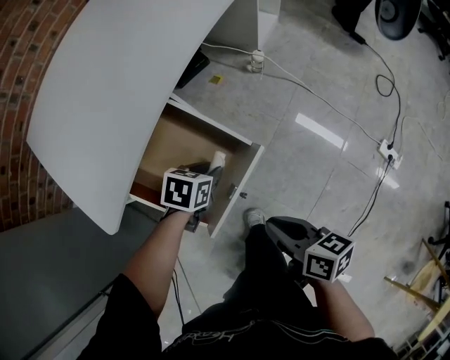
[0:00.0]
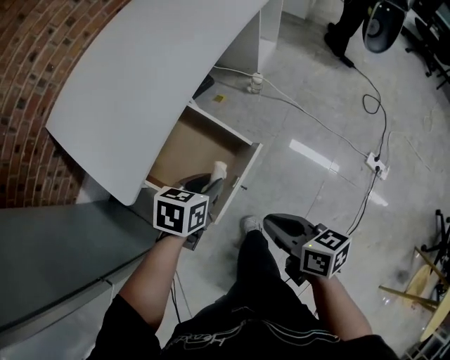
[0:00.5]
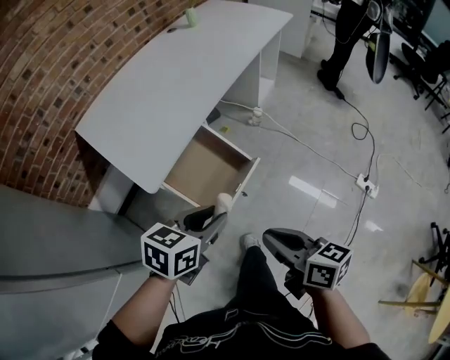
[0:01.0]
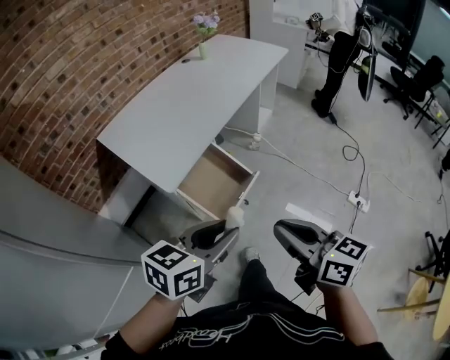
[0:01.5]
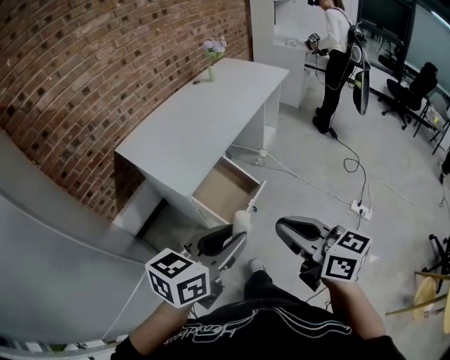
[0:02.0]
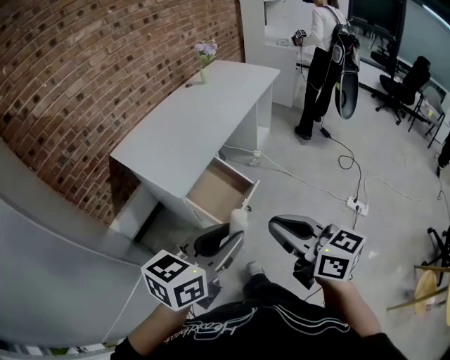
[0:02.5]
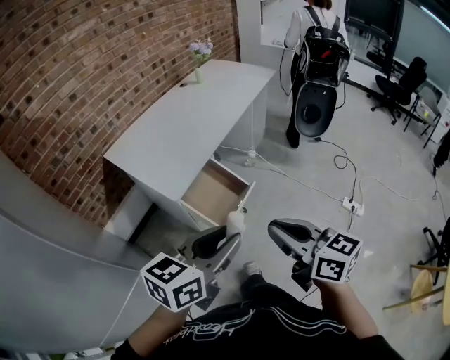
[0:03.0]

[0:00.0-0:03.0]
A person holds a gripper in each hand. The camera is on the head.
0:00.0 to 0:01.5: Both grippers move upward and backward, about 50 cm. The left gripper tips its fingers upward by roughly 40 degrees, while the right gripper swivels roughly 30 degrees.
0:01.5 to 0:03.0: The right gripper is displaced backward and upward by about 10 cm, while the left gripper goes roughly 10 cm upward and backward.

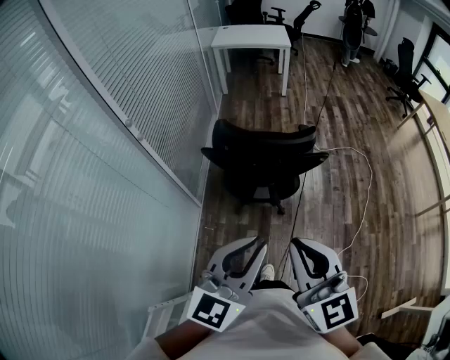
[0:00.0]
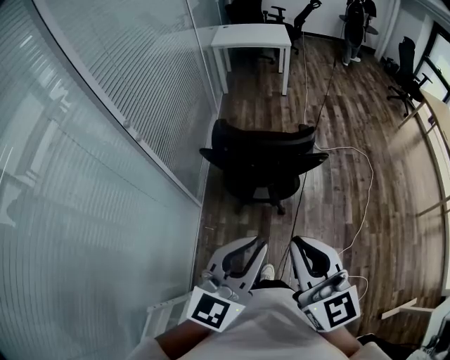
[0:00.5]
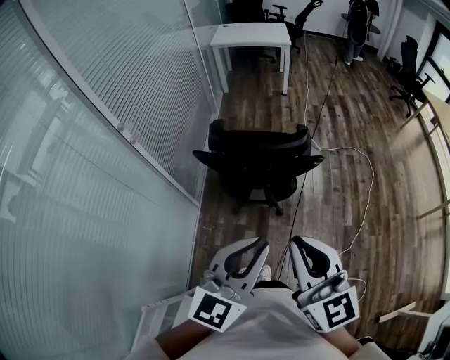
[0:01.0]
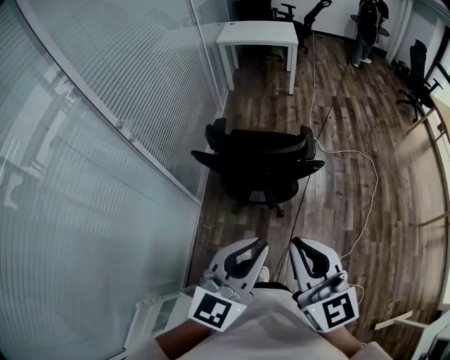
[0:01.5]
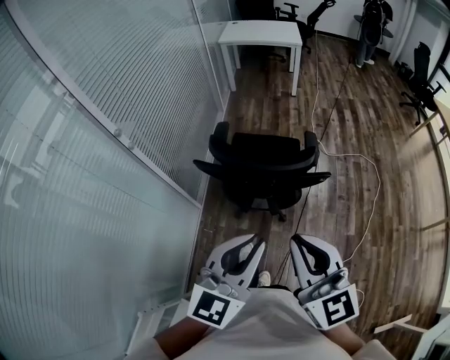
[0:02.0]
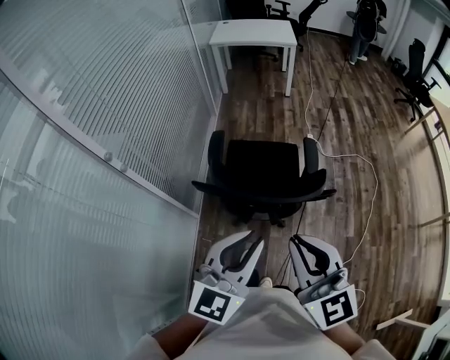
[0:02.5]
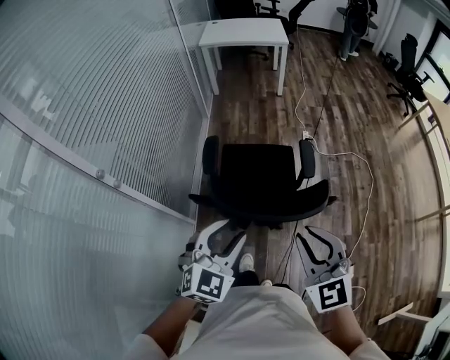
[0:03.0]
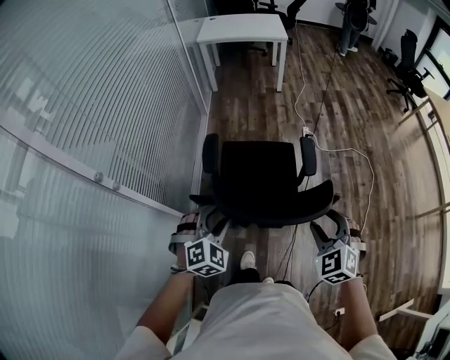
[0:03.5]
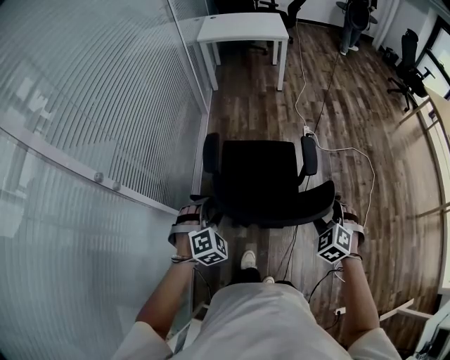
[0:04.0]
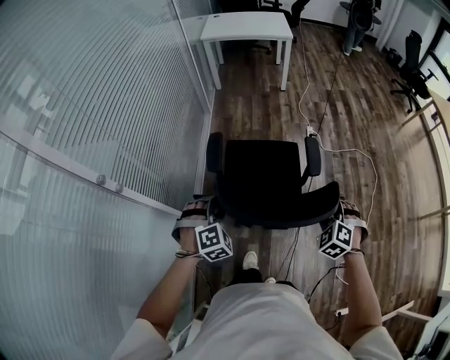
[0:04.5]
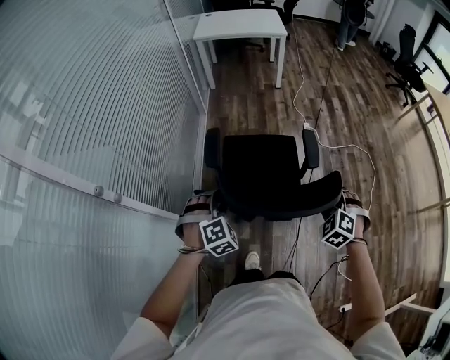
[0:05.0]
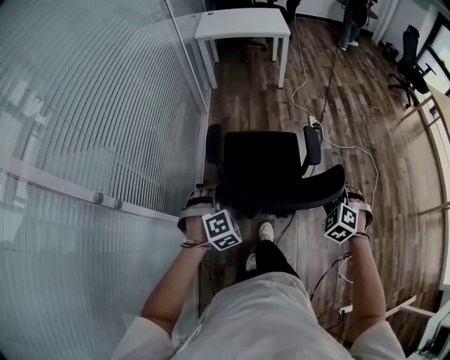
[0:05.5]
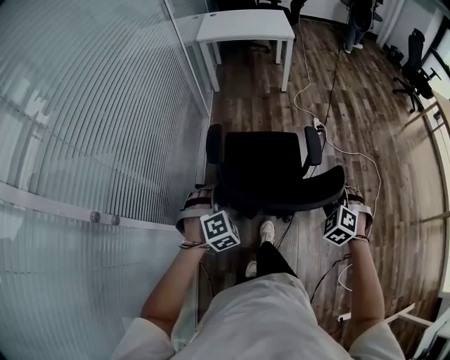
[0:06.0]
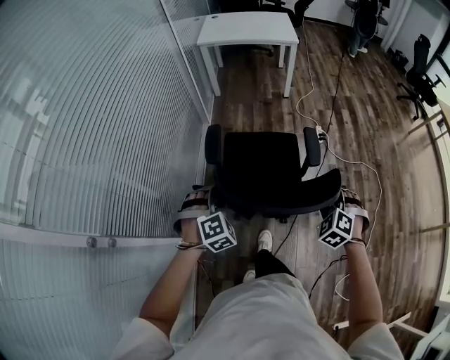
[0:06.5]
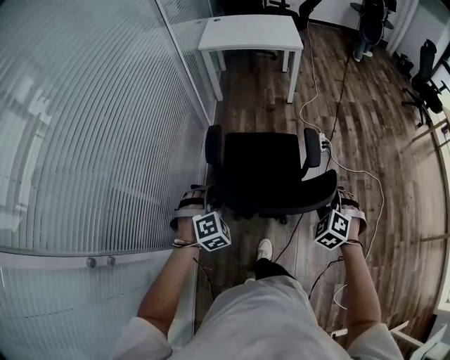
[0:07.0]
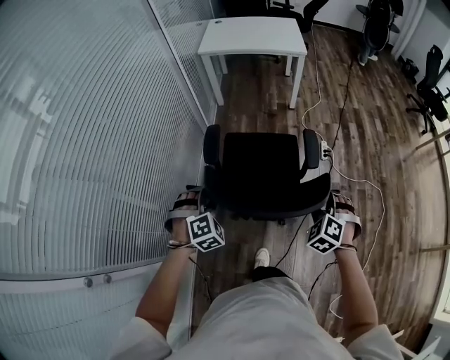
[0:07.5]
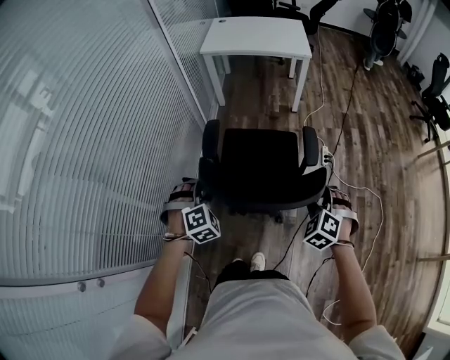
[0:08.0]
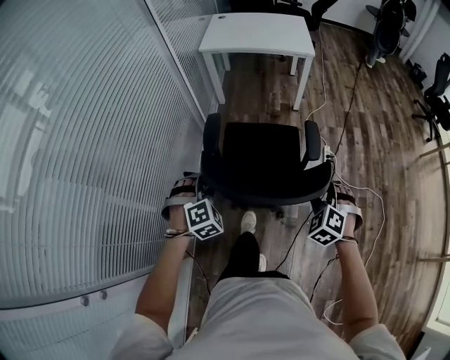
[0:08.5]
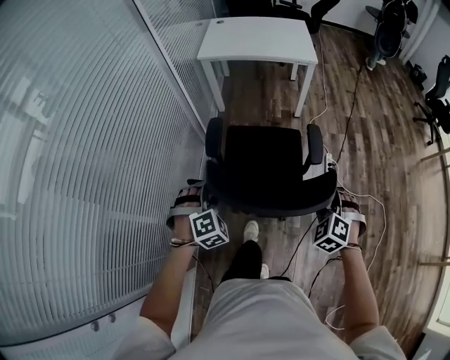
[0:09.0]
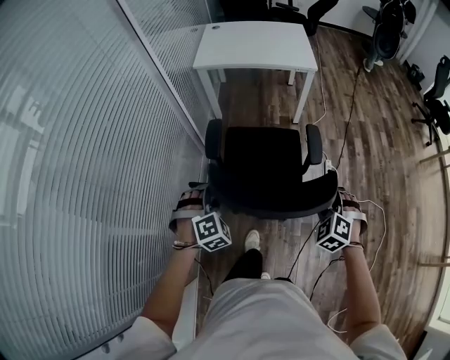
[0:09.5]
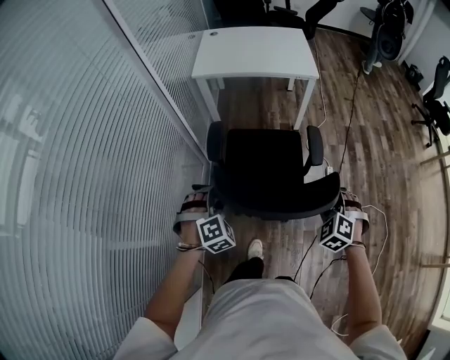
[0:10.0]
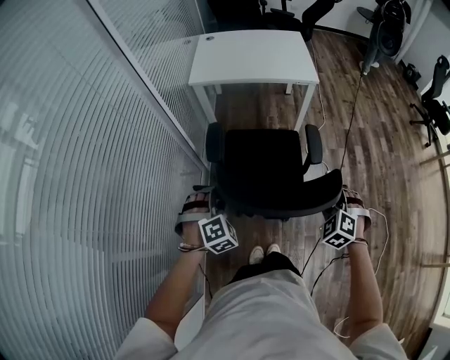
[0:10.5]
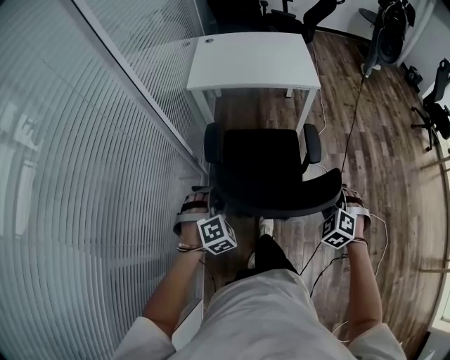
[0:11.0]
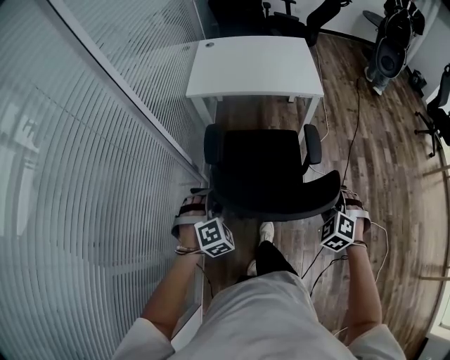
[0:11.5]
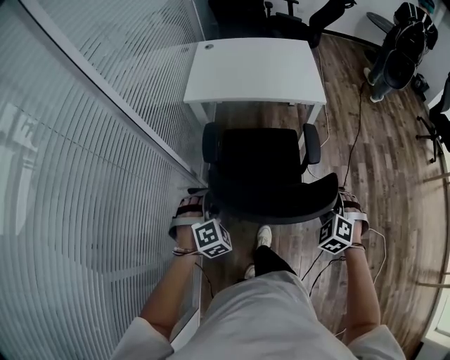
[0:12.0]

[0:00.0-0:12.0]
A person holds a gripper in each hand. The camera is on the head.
0:00.0 to 0:02.0: The grippers both shift forward by about 10 cm.
0:02.0 to 0:04.0: The right gripper shifts about 35 cm downward and forward, angles its fingers downward, by approximately 50 degrees, and opens. Meanwhile the left gripper is displaced forward, downward and to the left by roughly 40 cm, tilts its fingers approximately 40 degrees downward, and opens up.
0:04.0 to 0:06.0: Both grippers move forward, approximately 15 cm.
0:06.0 to 0:08.0: Both grippers travel together forward, about 30 cm.
0:08.0 to 0:10.0: The grippers both shift forward by about 25 cm.
0:10.0 to 0:12.0: The grippers both shift forward by about 20 cm.

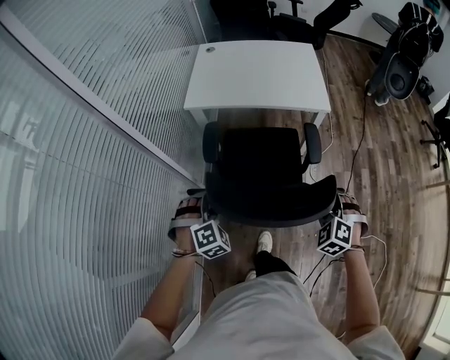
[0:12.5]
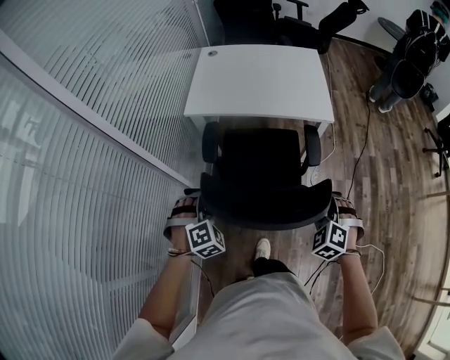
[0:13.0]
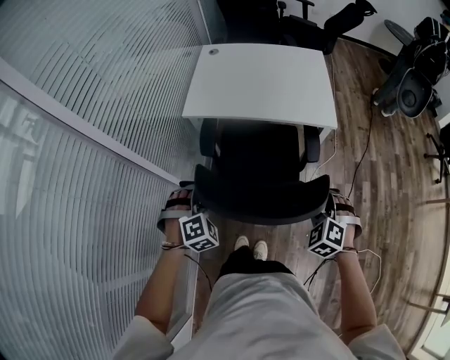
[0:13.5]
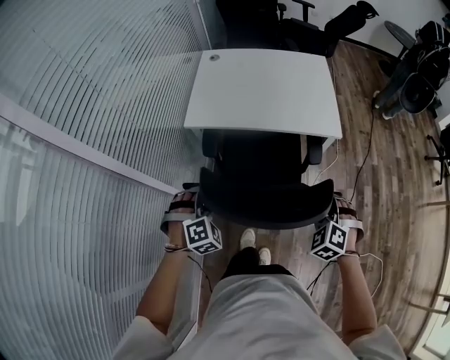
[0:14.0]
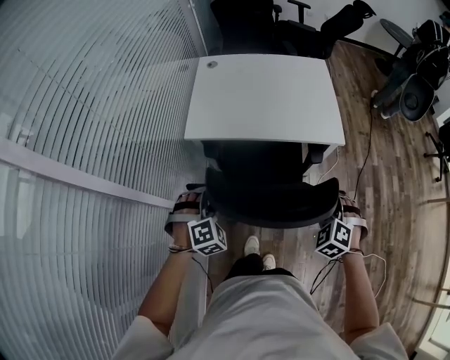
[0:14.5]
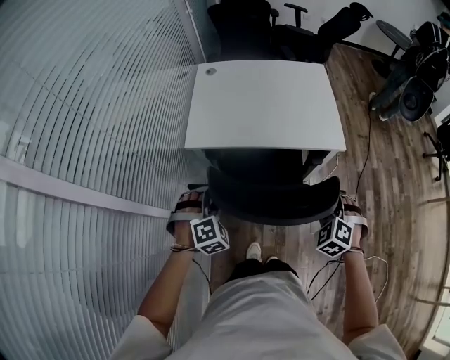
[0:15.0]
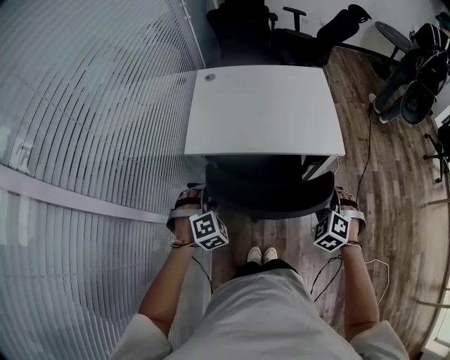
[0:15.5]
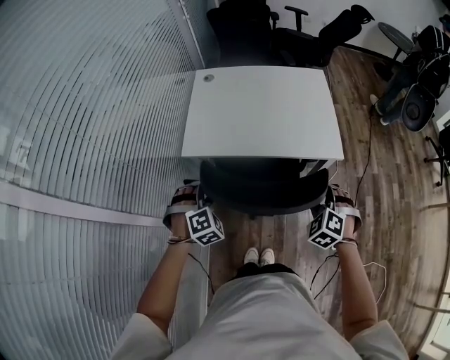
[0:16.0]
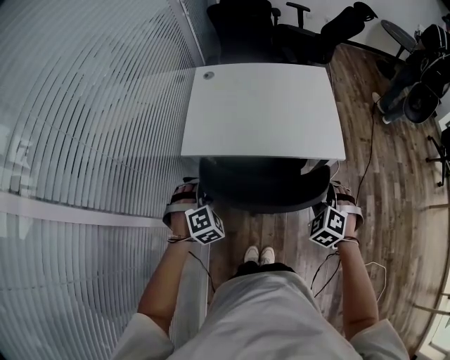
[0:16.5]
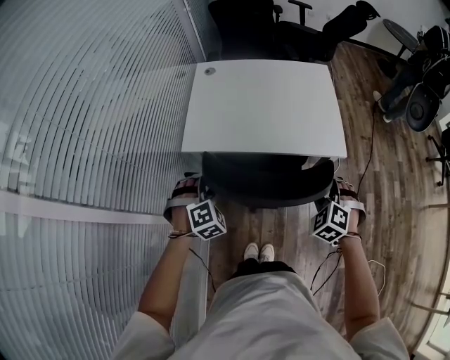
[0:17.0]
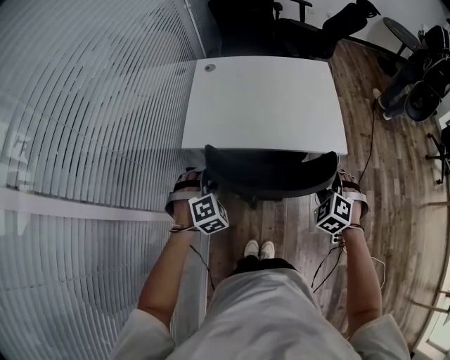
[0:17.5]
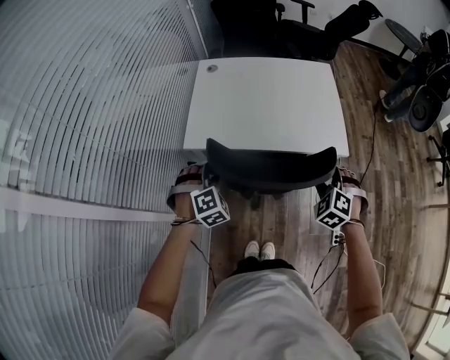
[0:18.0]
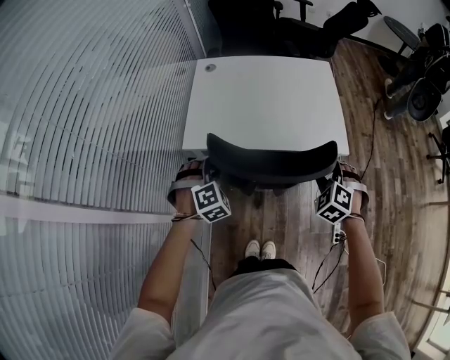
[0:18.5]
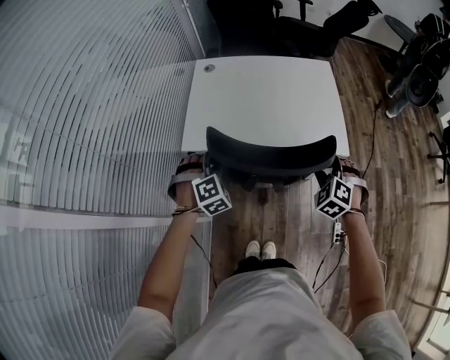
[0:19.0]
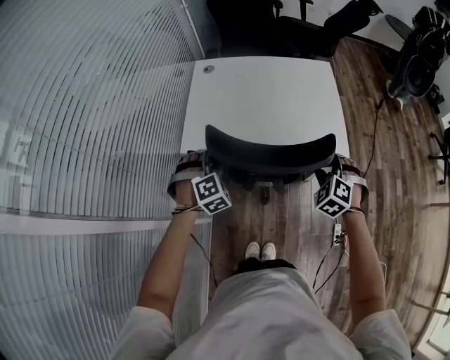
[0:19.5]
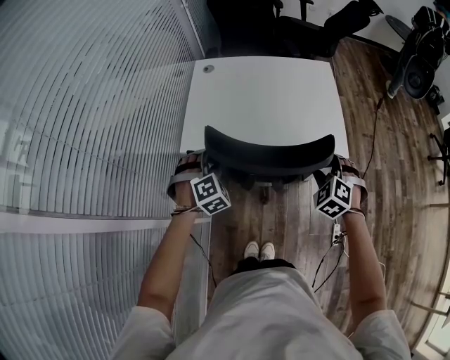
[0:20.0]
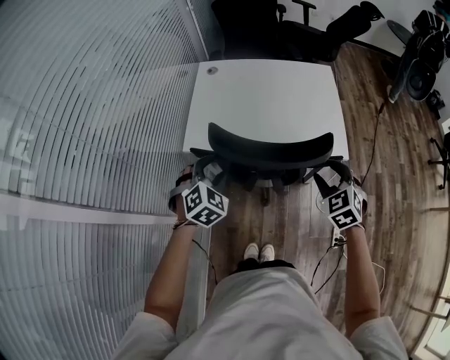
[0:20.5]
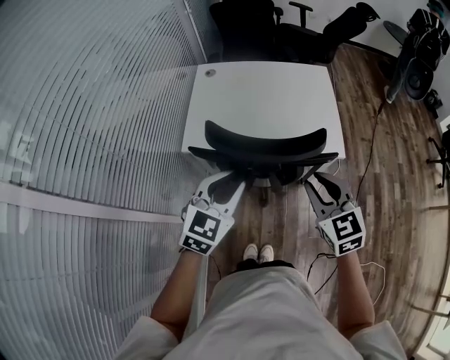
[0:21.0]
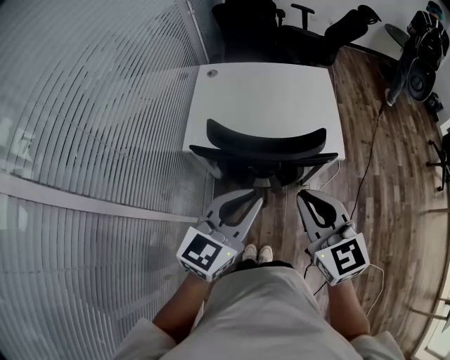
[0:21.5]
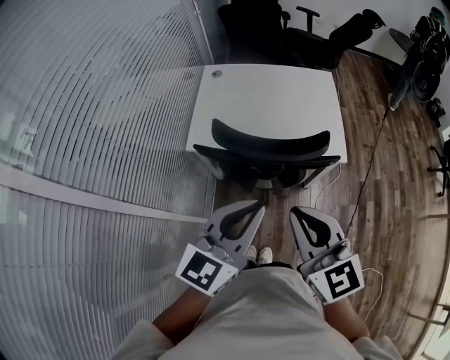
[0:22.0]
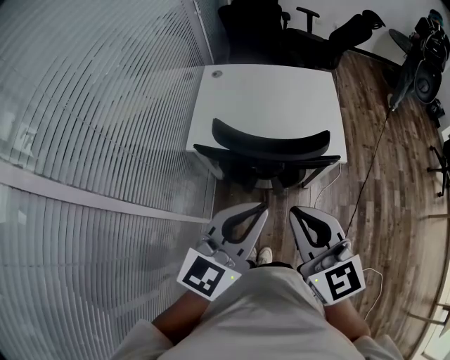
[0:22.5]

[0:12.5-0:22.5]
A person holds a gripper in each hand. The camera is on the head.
0:12.5 to 0:14.5: Both grippers travel together forward, approximately 20 cm.
0:14.5 to 0:16.5: The grippers both shift forward by roughly 10 cm.
0:16.5 to 0:18.5: Both grippers move forward, approximately 5 cm.
0:18.5 to 0:20.5: The grippers both shift upward by about 5 cm. The right gripper changes its angle by roughly 30 degrees. Meanwhile the left gripper swivels approximately 20 degrees.
0:20.5 to 0:22.5: The right gripper is displaced upward, backward and to the left by approximately 30 cm, points its fingers some 30 degrees further upward, and closes, while the left gripper moves upward, backward and to the right, about 30 cm, angles its fingers upward, by about 40 degrees, and closes up.

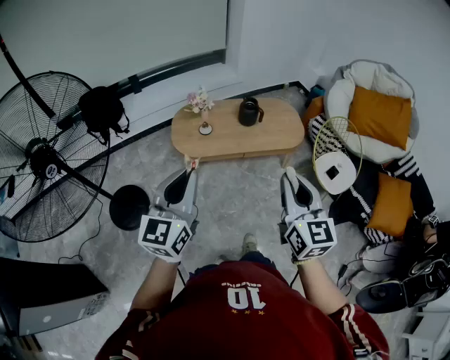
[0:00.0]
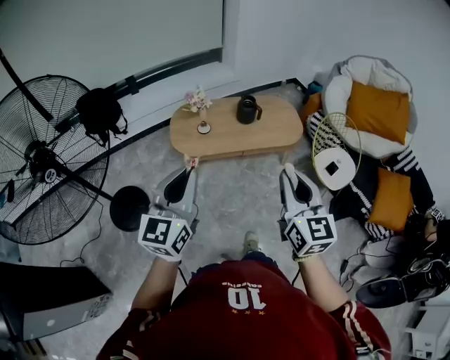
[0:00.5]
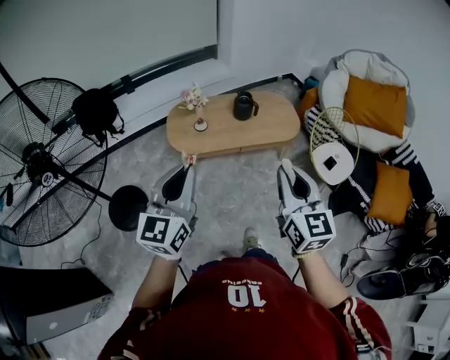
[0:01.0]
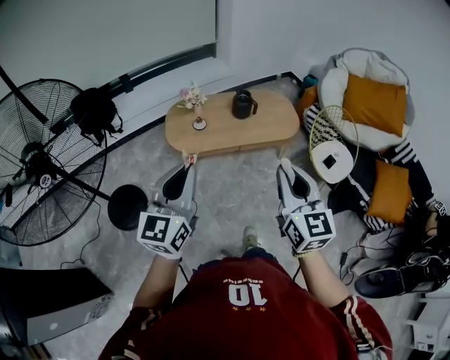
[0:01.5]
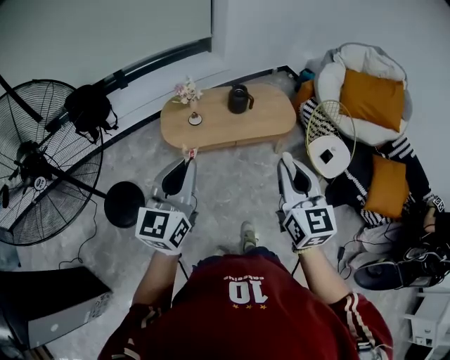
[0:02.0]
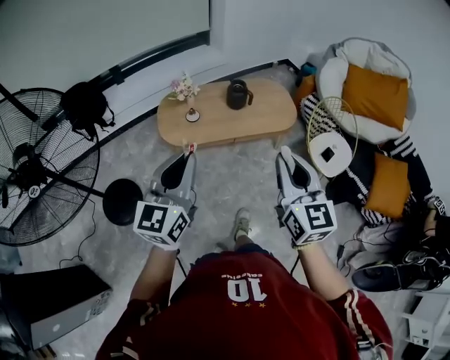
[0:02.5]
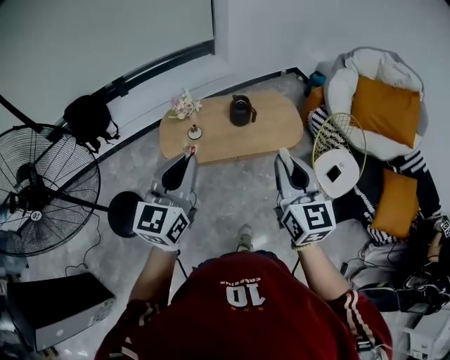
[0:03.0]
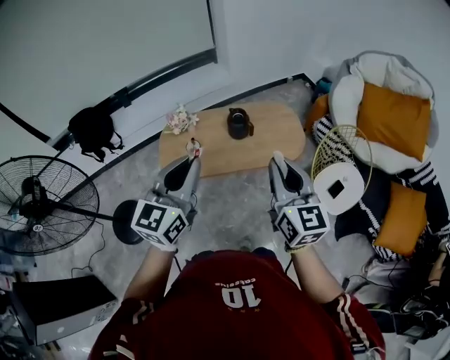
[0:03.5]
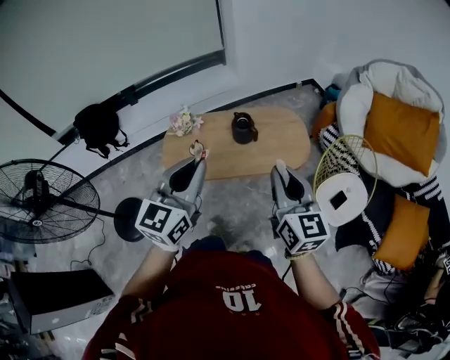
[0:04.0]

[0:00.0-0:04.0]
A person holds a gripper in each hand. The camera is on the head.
0:00.0 to 0:02.0: The grippers stay close to where they were, moving slightly.
0:02.0 to 0:04.0: The grippers both shift forward and to the right by approximately 30 cm.
